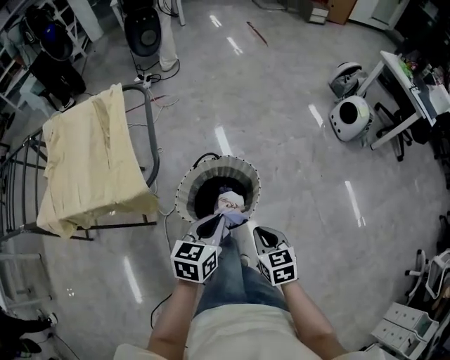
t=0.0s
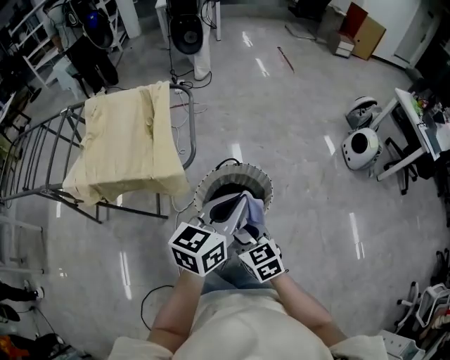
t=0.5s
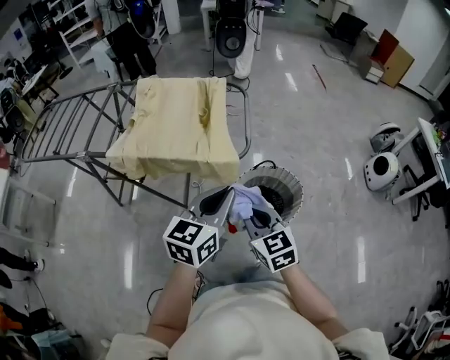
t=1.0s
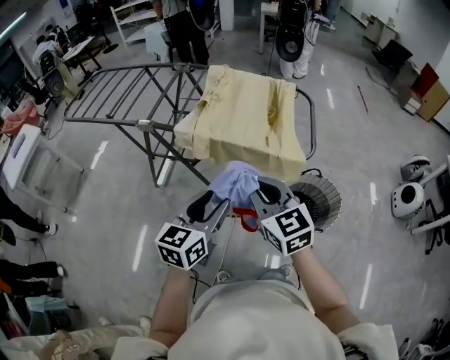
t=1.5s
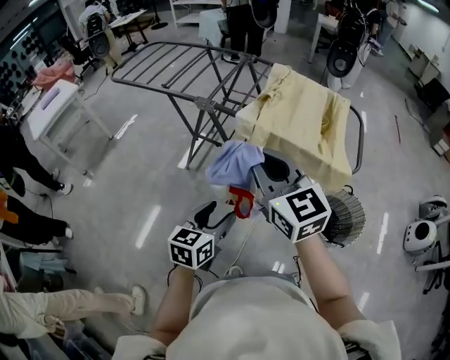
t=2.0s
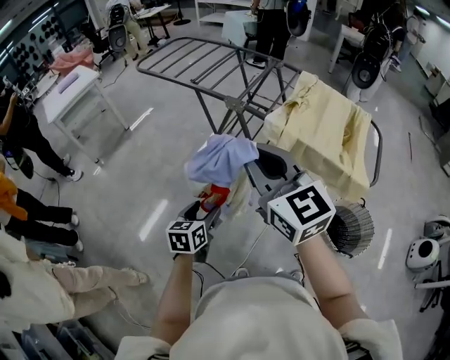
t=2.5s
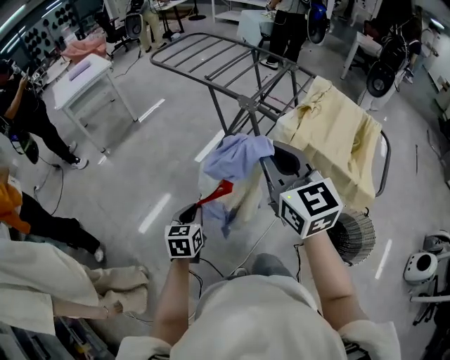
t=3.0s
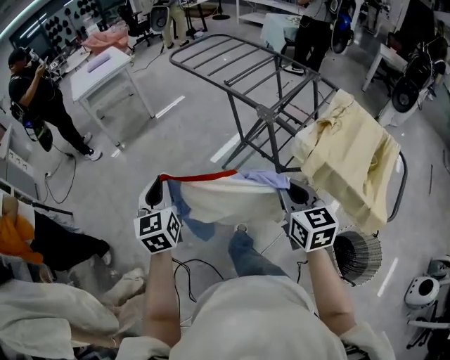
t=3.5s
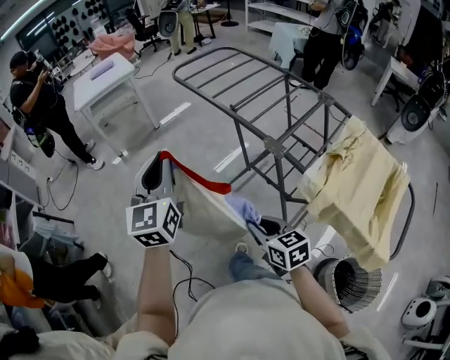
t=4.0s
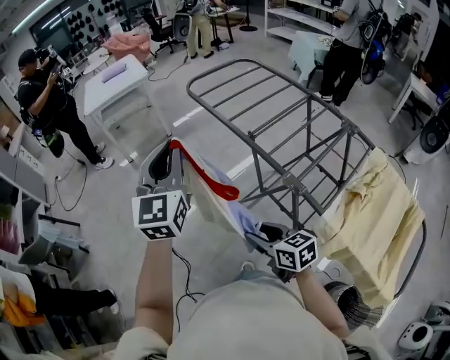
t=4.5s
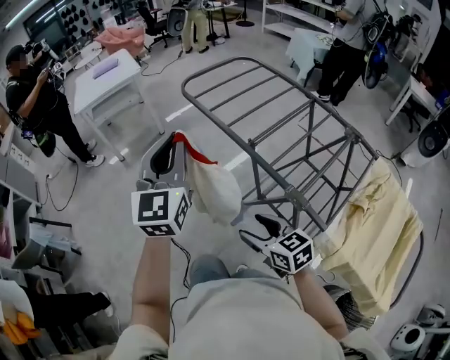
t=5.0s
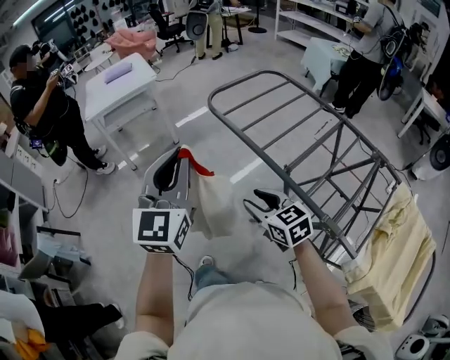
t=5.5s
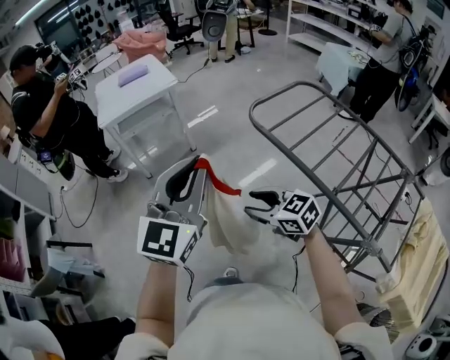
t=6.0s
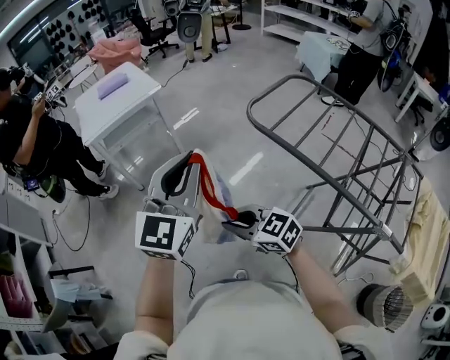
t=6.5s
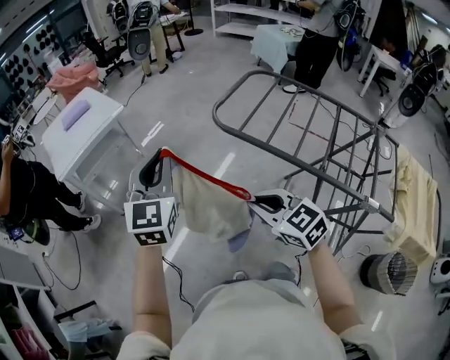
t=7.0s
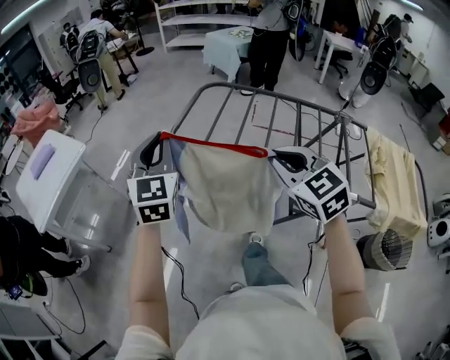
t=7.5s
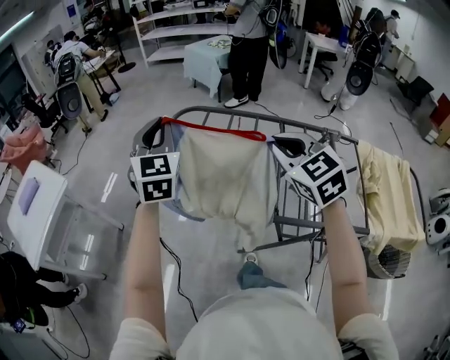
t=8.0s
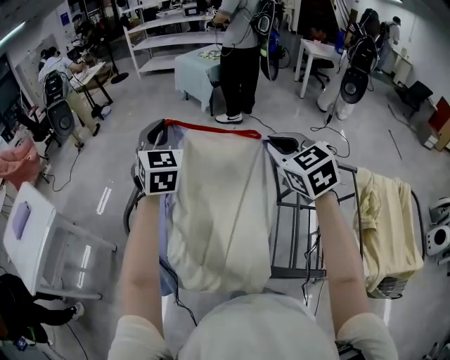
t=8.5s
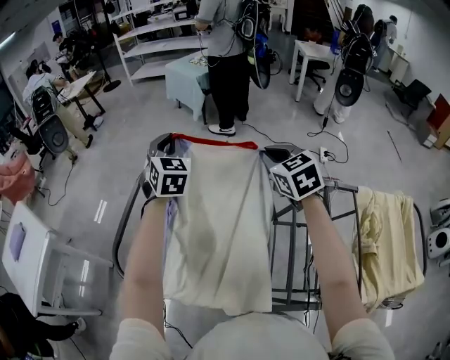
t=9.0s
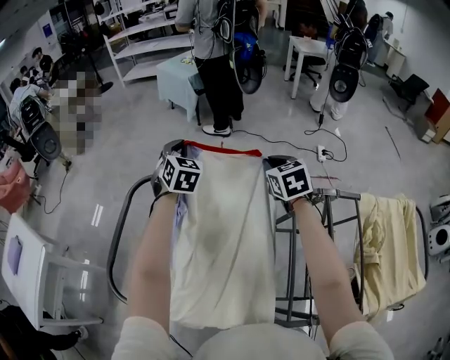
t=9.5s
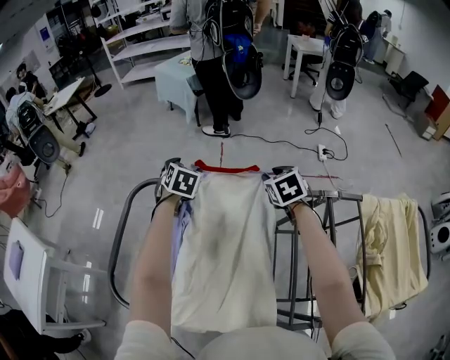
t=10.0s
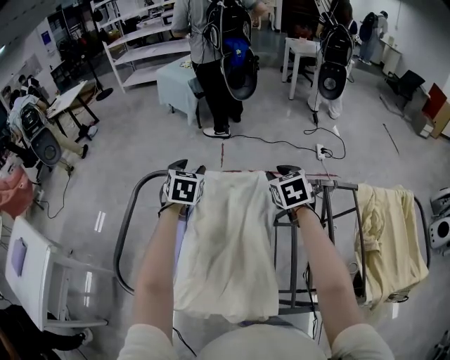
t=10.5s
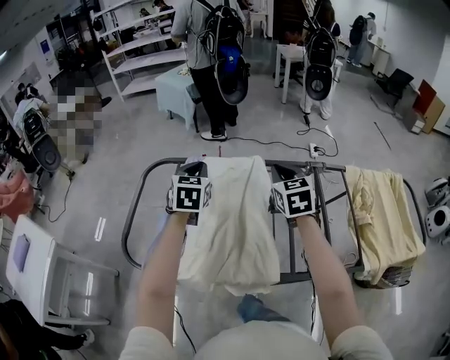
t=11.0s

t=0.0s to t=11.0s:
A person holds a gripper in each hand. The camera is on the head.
t=0.0s to t=2.0s: The two grippers travel together, roughly 60 cm. The left gripper rotates some 40 degrees, and opens up; the right gripper tilts its fingers about 40 degrees upward, and opens, then closes once more.
t=2.0s to t=3.5s: The right gripper moves downward, roughly 10 cm, while the left gripper moves about 35 cm, changes its angle by roughly 60 degrees, and closes its fingers.
t=3.5s to t=5.5s: The left gripper travels forward and upward by about 40 cm, and changes its angle by roughly 20 degrees. Meanwhile the right gripper goes some 40 cm forward, swivels approximately 30 degrees, and opens up.
t=5.5s to t=7.5s: The right gripper goes approximately 15 cm upward, changes its angle by roughly 40 degrees, and closes its fingers; the left gripper changes place by some 30 cm, and rotates roughly 20 degrees.
t=7.5s to t=9.0s: The two grippers travel together, forward and to the right, about 50 cm.
t=9.0s to t=11.0s: The left gripper moves backward and to the right, approximately 15 cm, changes its angle by some 30 degrees, and opens and closes again; the right gripper travels backward by roughly 10 cm, swivels roughly 20 degrees, and opens, then closes again.

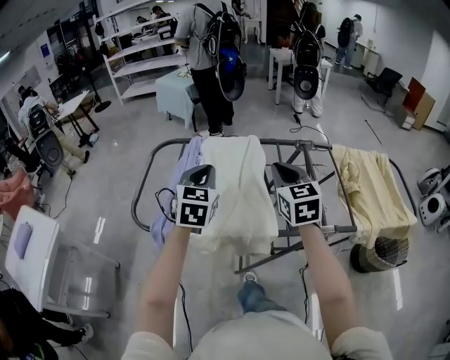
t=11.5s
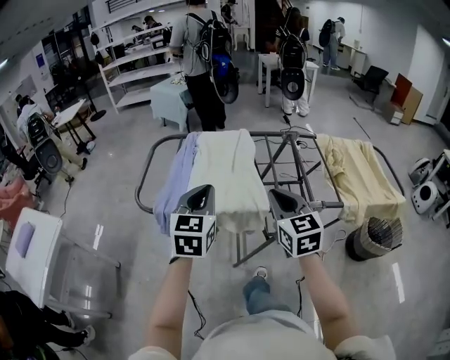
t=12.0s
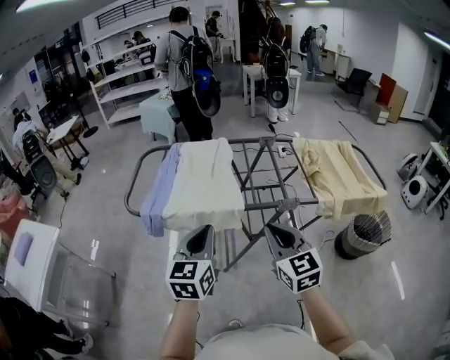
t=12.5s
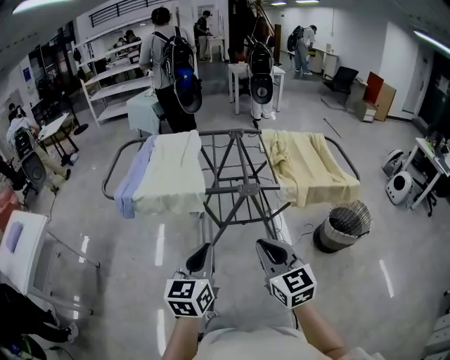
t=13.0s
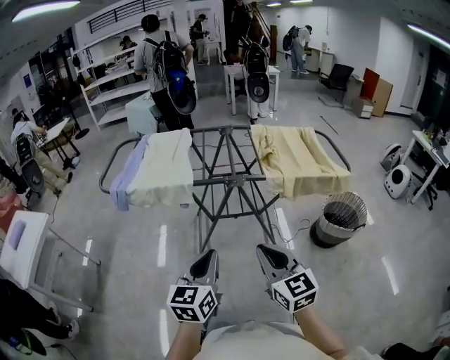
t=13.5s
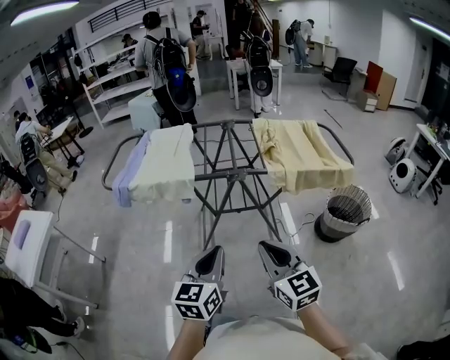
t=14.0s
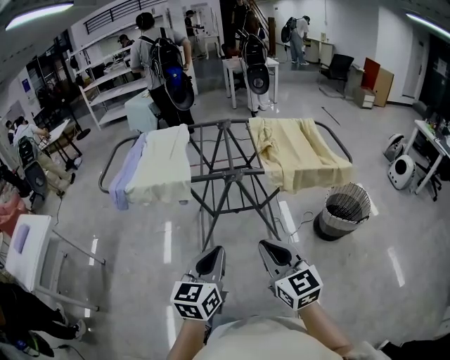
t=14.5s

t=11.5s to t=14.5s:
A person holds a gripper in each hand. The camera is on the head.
t=11.5s to t=13.0s: The two grippers travel together, backward and to the right, about 50 cm. The left gripper changes its angle by some 30 degrees.
t=13.0s to t=14.5s: The right gripper shifts roughly 10 cm backward and to the right. The left gripper goes some 10 cm to the right and backward.

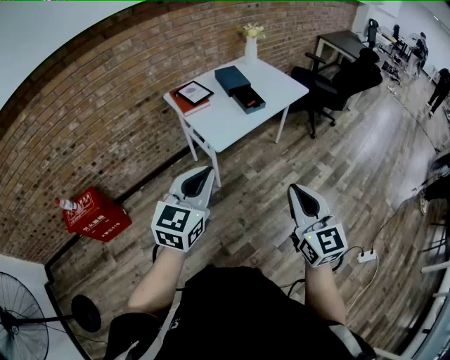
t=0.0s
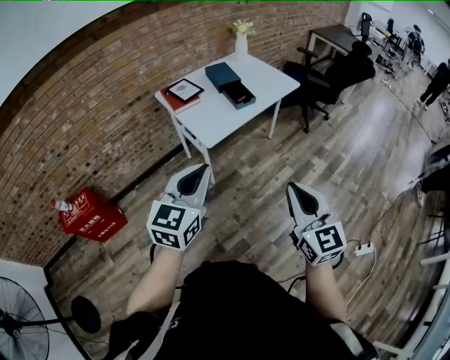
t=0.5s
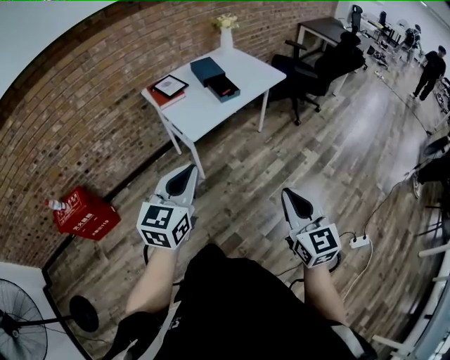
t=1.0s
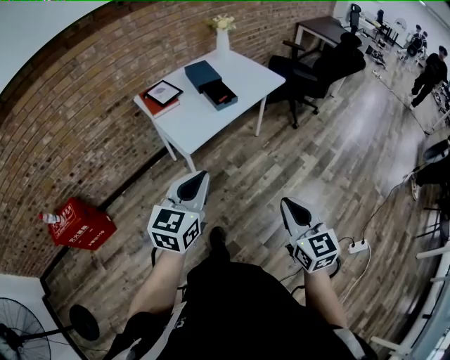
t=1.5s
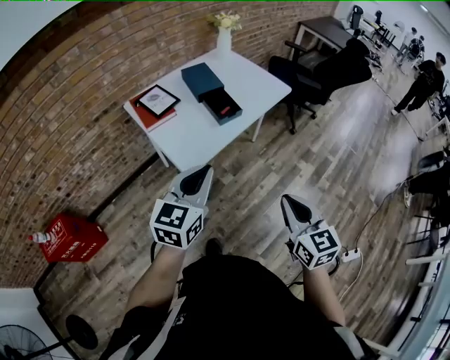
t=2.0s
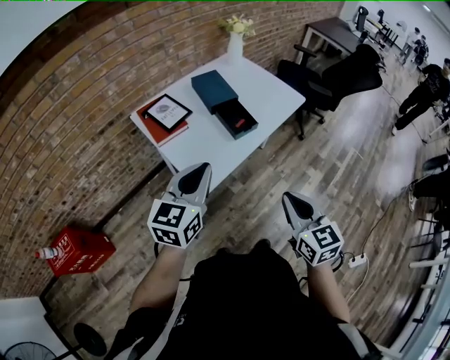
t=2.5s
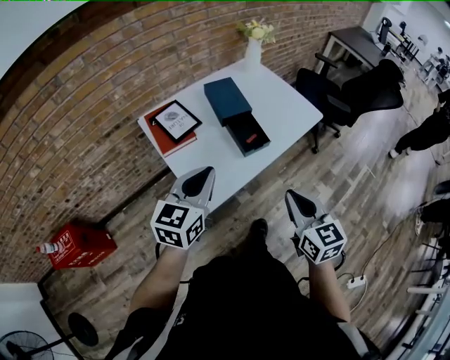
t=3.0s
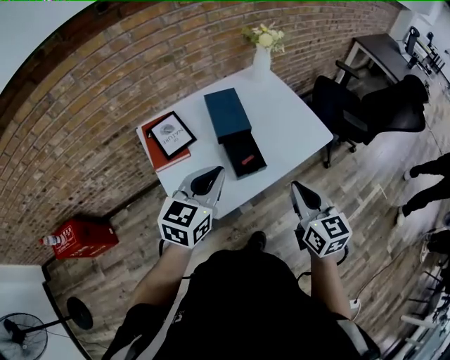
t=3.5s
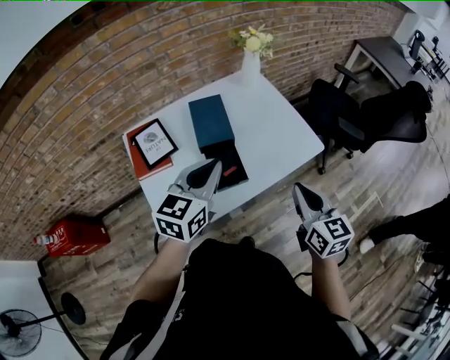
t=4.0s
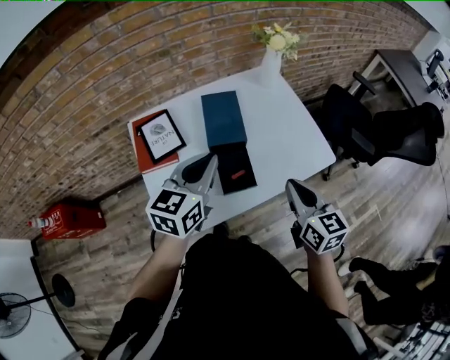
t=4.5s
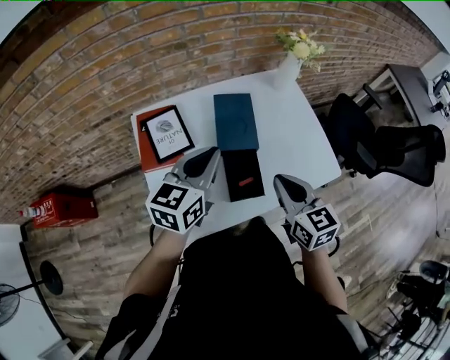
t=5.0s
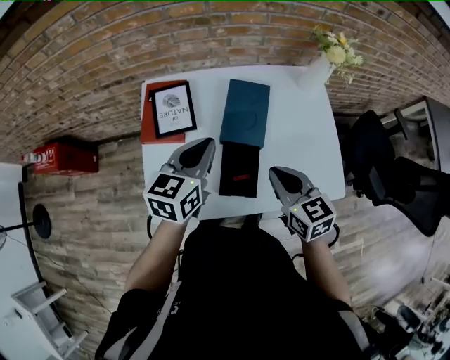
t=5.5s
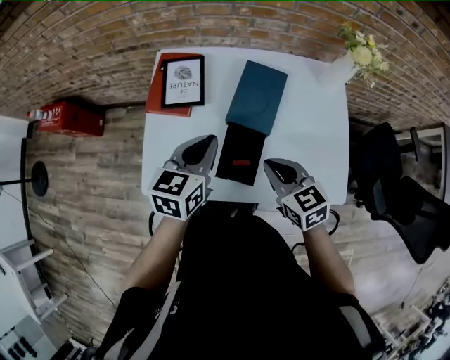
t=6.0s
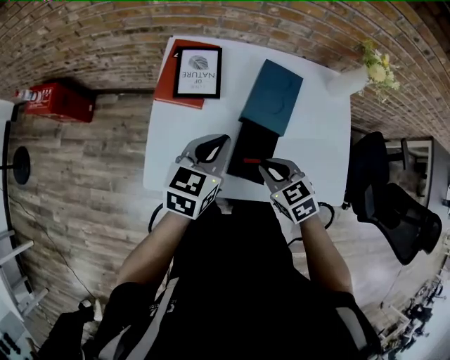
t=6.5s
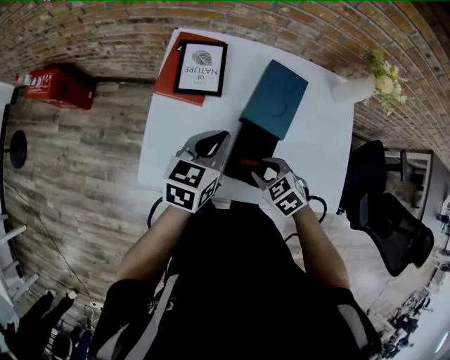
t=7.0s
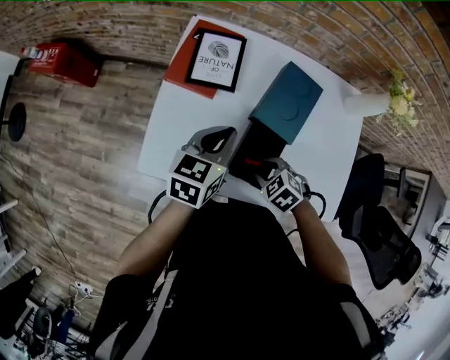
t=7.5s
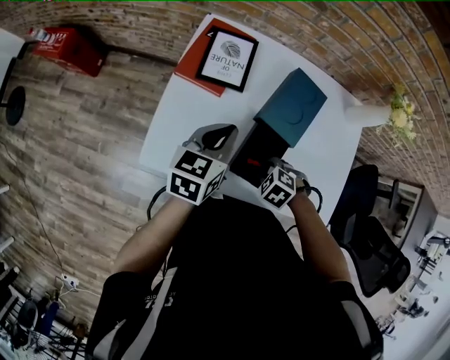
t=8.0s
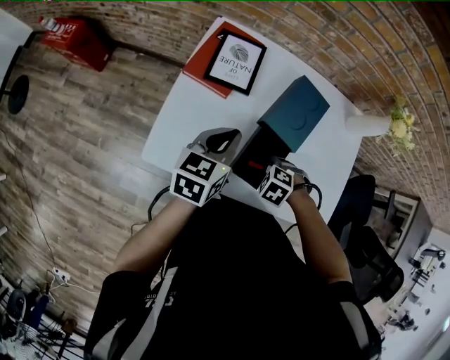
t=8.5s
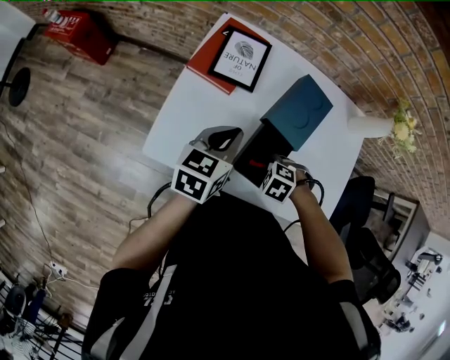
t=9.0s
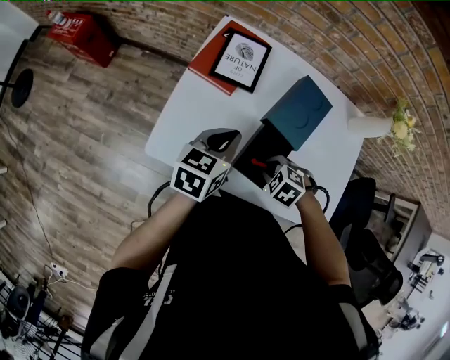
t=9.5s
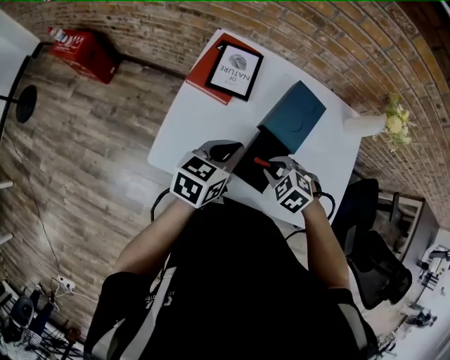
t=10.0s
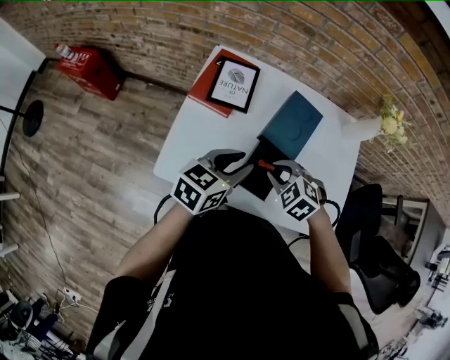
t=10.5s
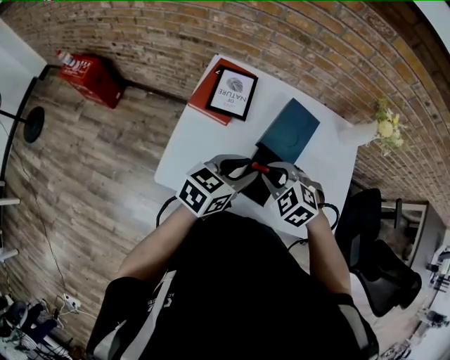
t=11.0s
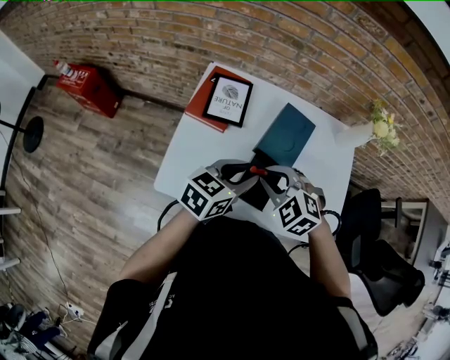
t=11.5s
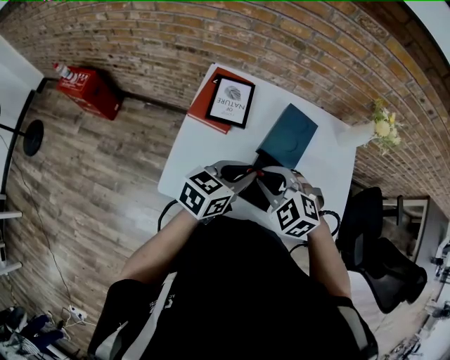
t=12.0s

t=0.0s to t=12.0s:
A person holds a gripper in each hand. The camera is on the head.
t=0.0s to t=2.0s: The left gripper shifts roughly 20 cm forward, while the right gripper goes some 20 cm forward and downward.
t=2.0s to t=4.0s: The grippers both shift forward by approximately 40 cm.
t=4.0s to t=6.0s: The left gripper goes roughly 10 cm downward, and changes its angle by about 40 degrees. Meanwhile the right gripper shifts by some 25 cm, and swivels approximately 50 degrees.
t=6.0s to t=8.0s: The right gripper moves downward, roughly 20 cm, and points its fingers about 50 degrees further downward. The left gripper changes place by approximately 10 cm.
t=8.0s to t=10.0s: The right gripper shifts approximately 10 cm upward.
t=10.0s to t=12.0s: The right gripper travels upward and to the left by roughly 15 cm, and changes its angle by about 20 degrees, while the left gripper changes place by about 5 cm.
